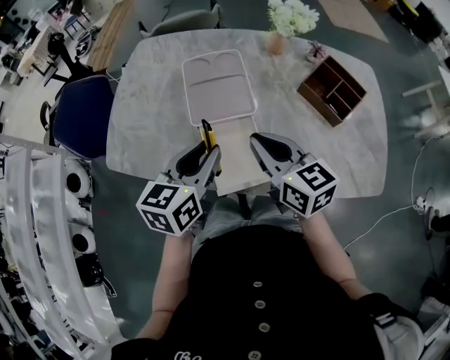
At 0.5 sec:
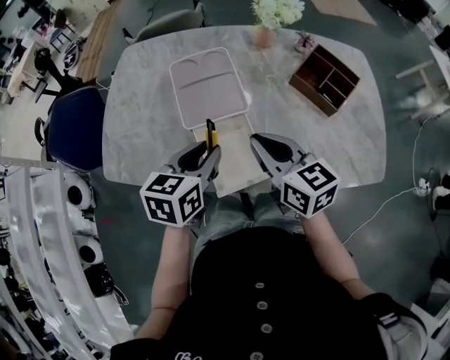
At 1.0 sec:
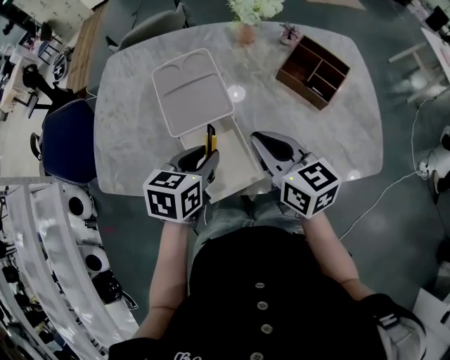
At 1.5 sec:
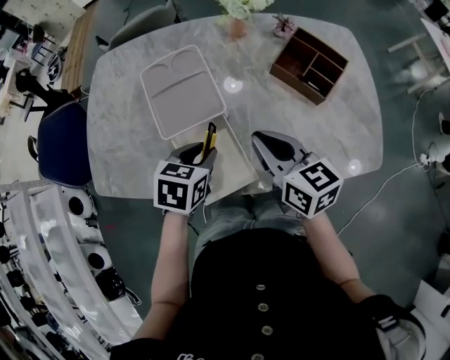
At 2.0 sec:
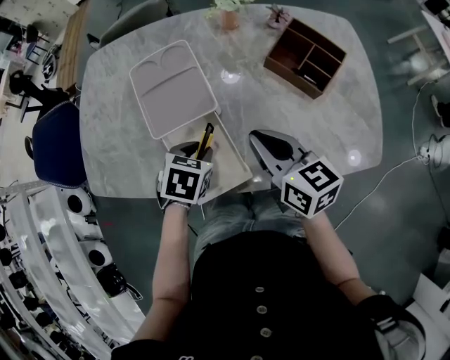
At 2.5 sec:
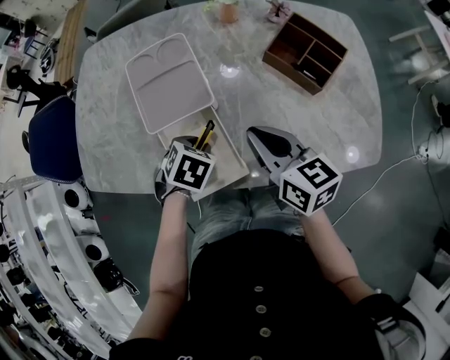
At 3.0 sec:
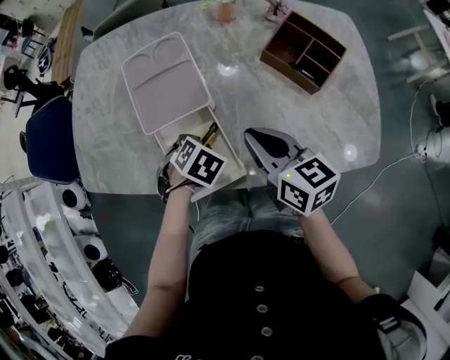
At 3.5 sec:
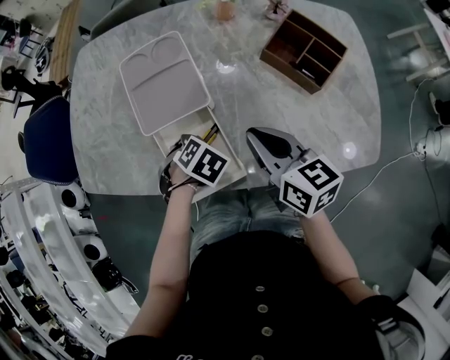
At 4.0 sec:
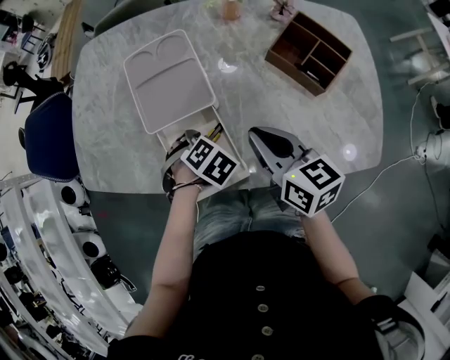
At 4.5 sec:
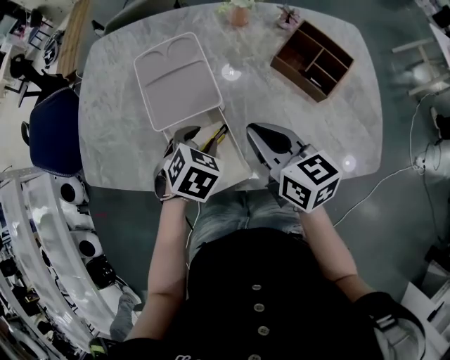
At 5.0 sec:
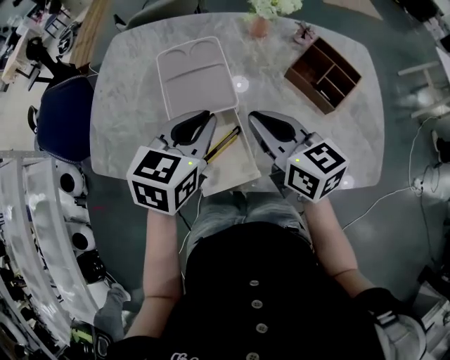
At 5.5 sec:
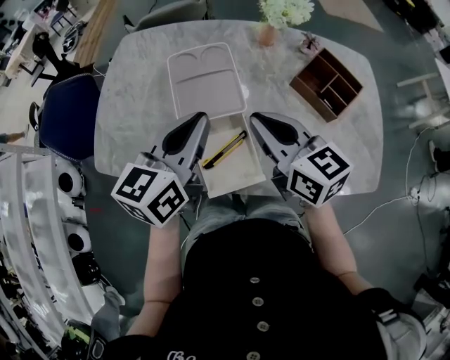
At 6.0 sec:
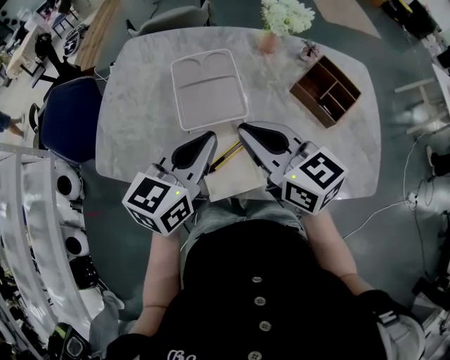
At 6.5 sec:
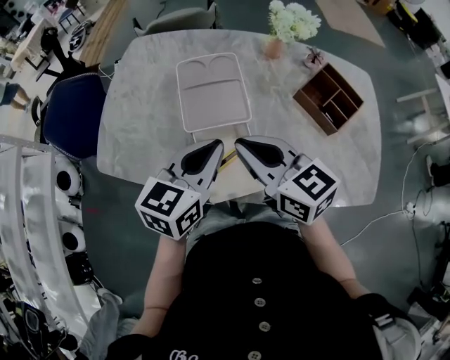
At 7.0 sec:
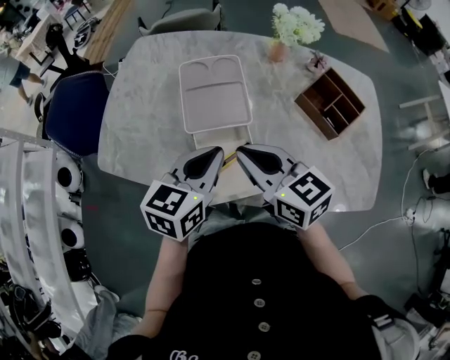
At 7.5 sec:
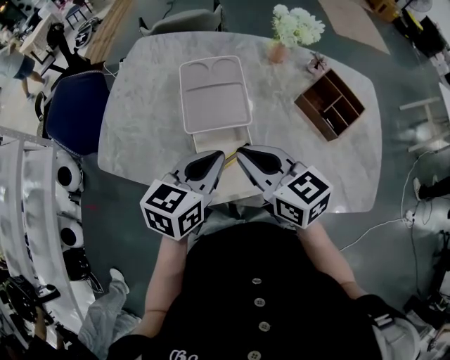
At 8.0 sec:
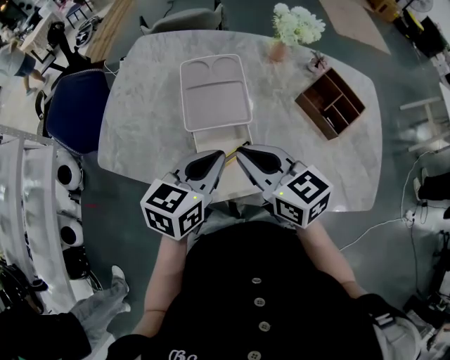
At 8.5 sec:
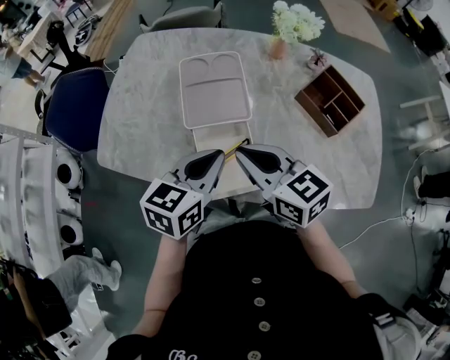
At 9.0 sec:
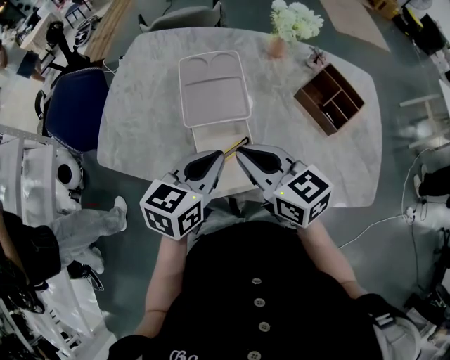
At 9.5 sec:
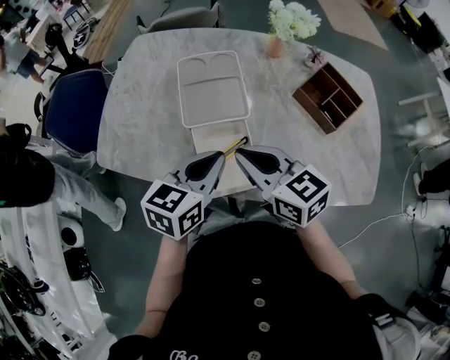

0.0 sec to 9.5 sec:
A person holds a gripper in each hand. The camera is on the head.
0.0 sec to 2.0 sec: The right gripper shifts approximately 10 cm to the right. Meanwhile the left gripper travels downward and to the right by about 15 cm, and angles its fingers downward, by roughly 40 degrees.
2.0 sec to 4.0 sec: The left gripper heads downward, covering some 5 cm, rotates some 30 degrees, and opens up.
4.0 sec to 5.5 sec: The left gripper moves upward, about 30 cm, angles its fingers upward, by approximately 70 degrees, and closes. Meanwhile the right gripper goes roughly 10 cm upward.
5.5 sec to 7.5 sec: The left gripper moves downward, some 5 cm. The right gripper ends up roughly 5 cm from where it was.
7.5 sec to 9.5 sec: The grippers make only small movements.

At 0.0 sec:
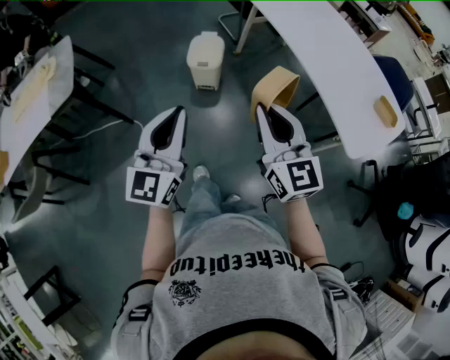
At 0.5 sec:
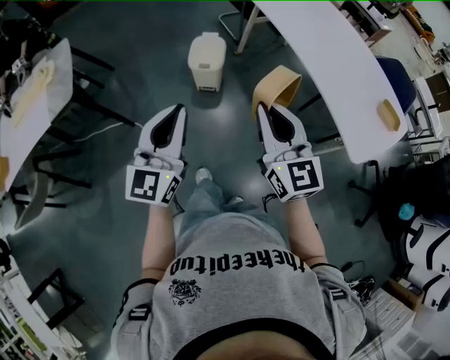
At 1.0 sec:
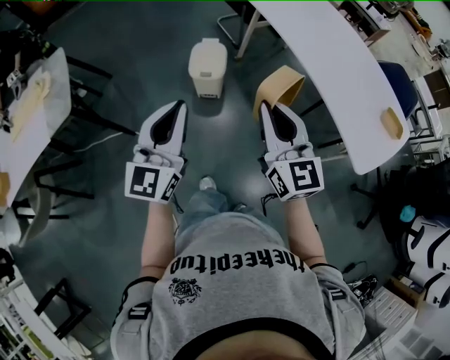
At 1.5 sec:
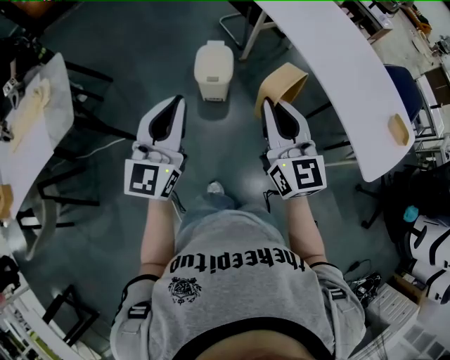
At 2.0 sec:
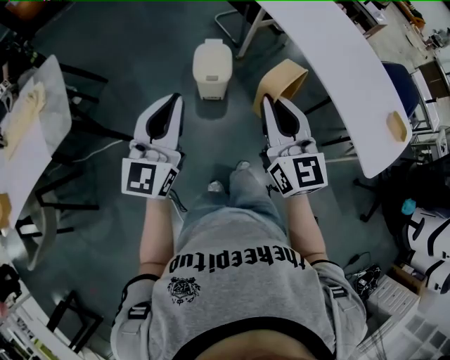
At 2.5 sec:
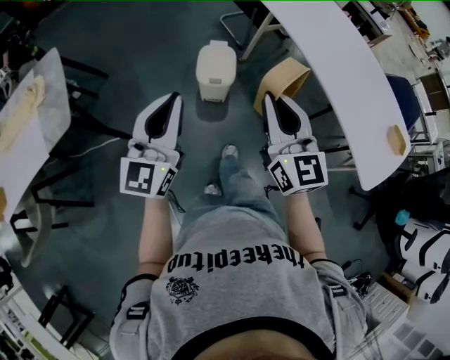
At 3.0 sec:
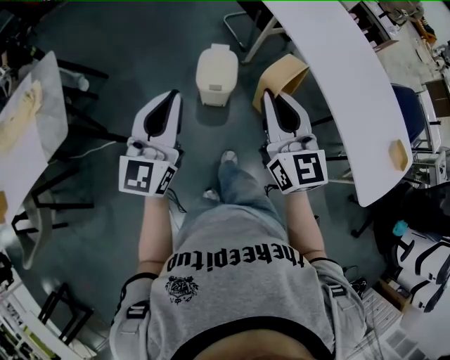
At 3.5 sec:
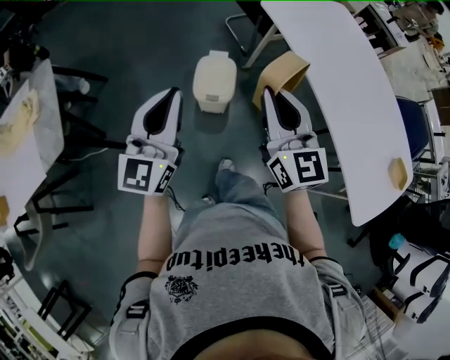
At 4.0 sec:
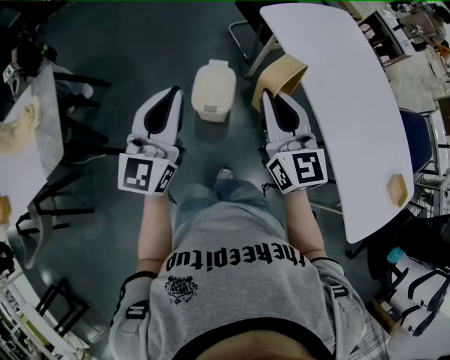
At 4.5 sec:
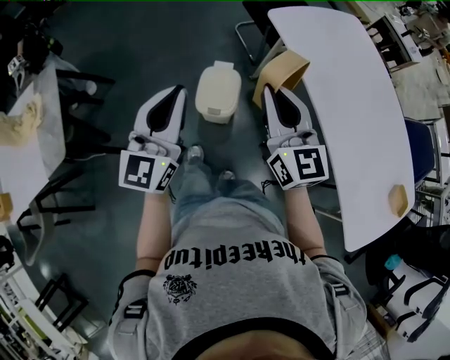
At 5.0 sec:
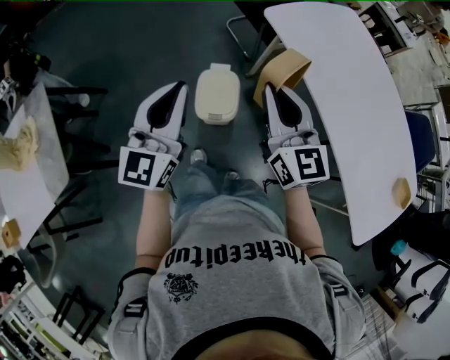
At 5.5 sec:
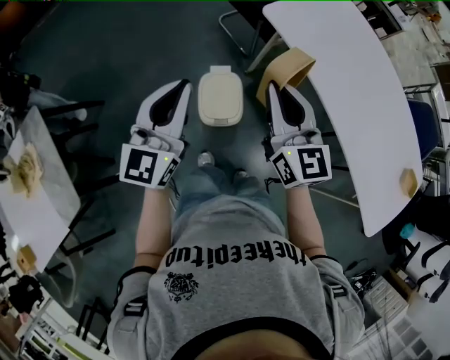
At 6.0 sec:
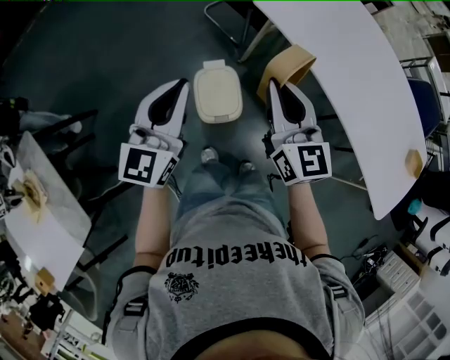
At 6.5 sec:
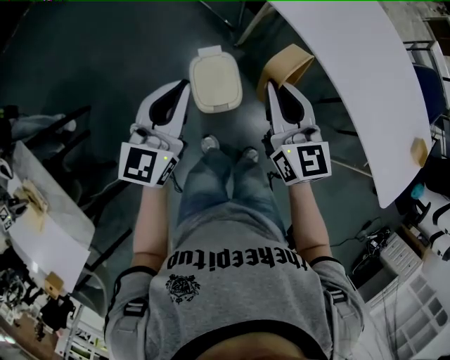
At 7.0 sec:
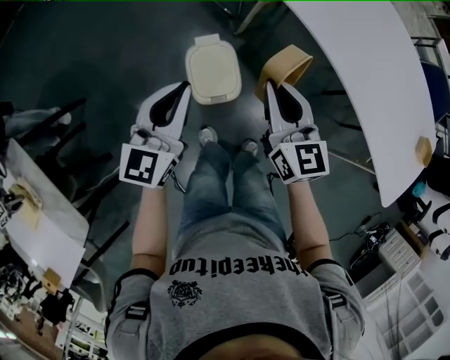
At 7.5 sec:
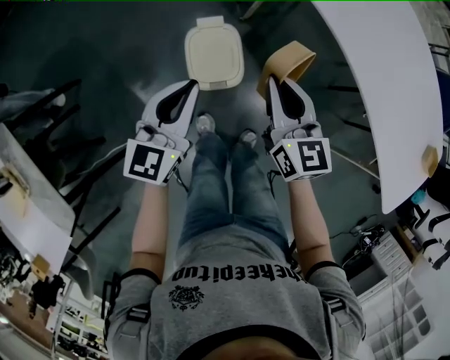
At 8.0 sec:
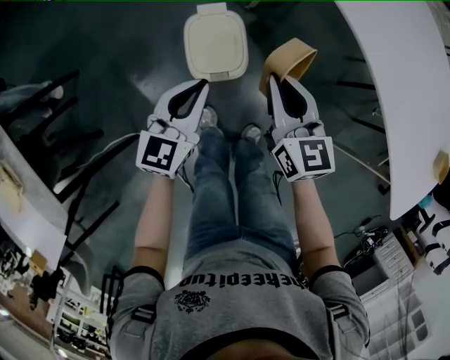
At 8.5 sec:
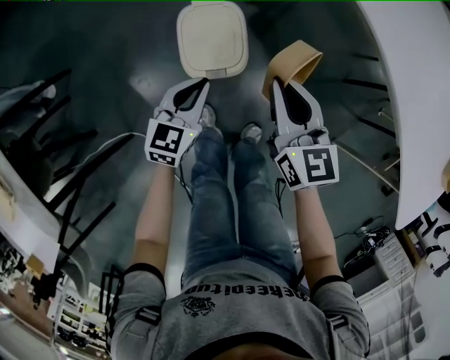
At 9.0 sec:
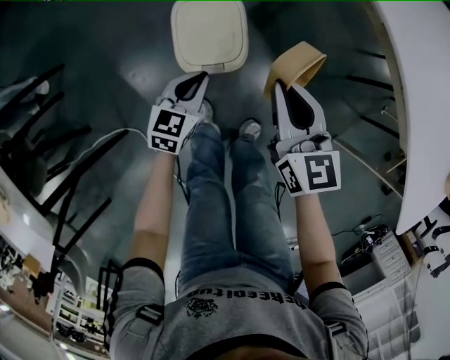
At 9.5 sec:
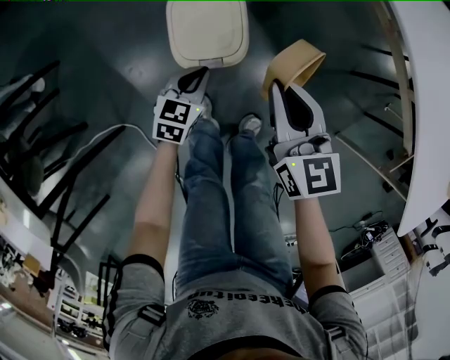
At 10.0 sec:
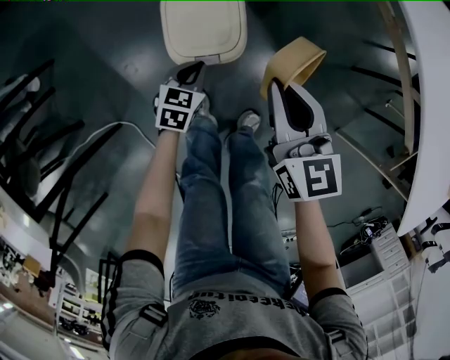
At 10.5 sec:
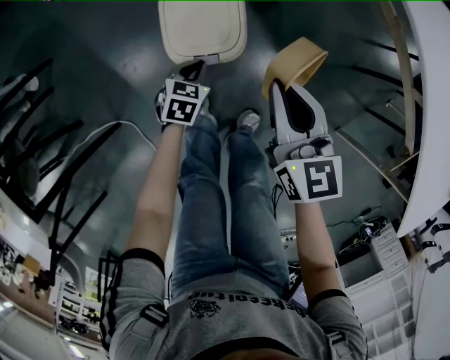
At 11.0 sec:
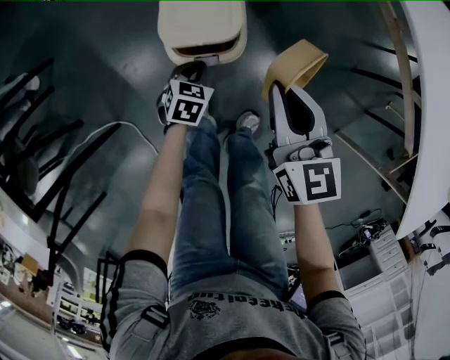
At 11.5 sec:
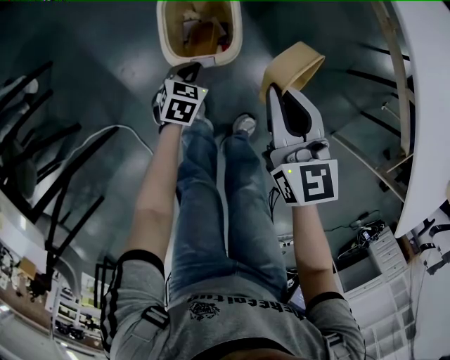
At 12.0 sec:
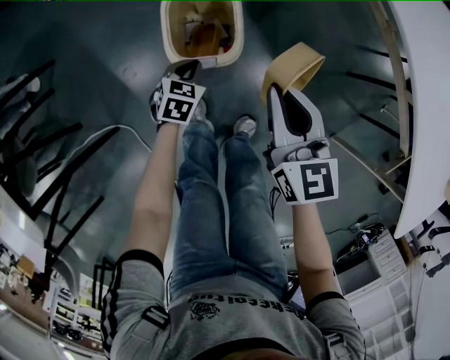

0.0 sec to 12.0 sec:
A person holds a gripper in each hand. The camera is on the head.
0.0 sec to 2.0 sec: Both grippers move forward and to the left, about 20 cm.
2.0 sec to 4.0 sec: Both grippers move forward, roughly 20 cm.
4.0 sec to 6.0 sec: The right gripper heads forward and to the left, covering about 15 cm; the left gripper heads forward, covering roughly 20 cm, and swivels about 20 degrees.
6.0 sec to 8.0 sec: The two grippers go about 20 cm downward.
8.0 sec to 10.0 sec: The right gripper goes roughly 10 cm downward, while the left gripper heads downward, covering about 30 cm, and points its fingers about 30 degrees further downward.
10.0 sec to 12.0 sec: The grippers stay close to where they were, moving slightly.

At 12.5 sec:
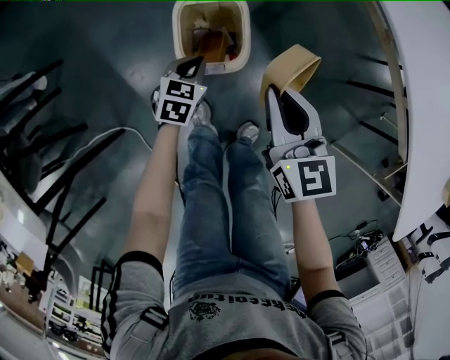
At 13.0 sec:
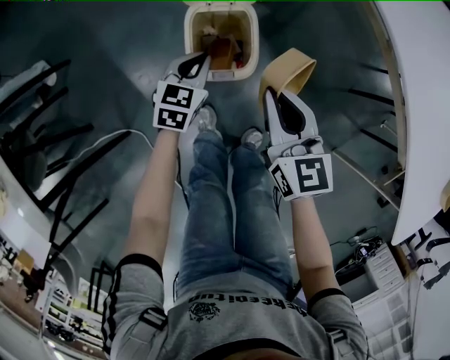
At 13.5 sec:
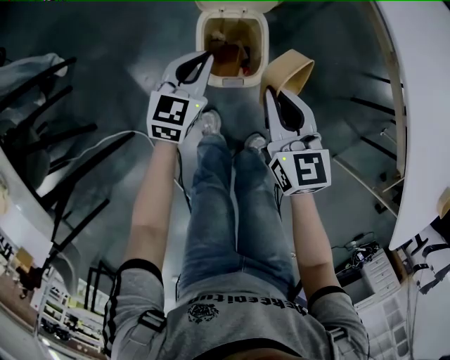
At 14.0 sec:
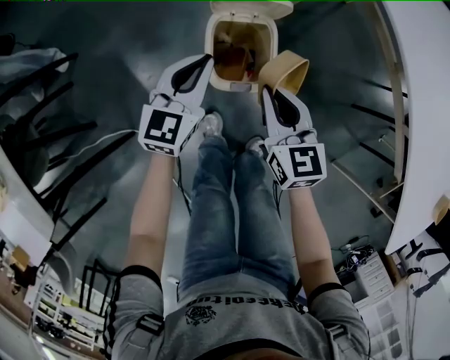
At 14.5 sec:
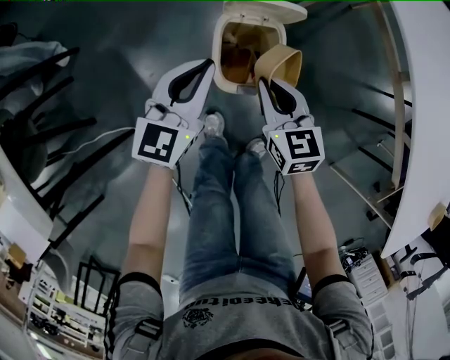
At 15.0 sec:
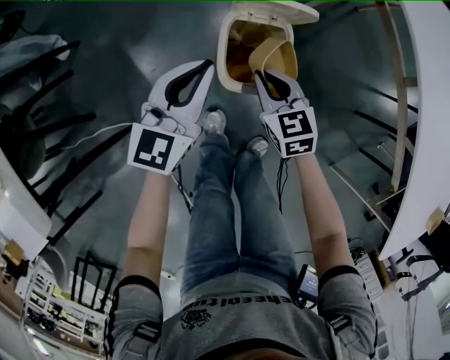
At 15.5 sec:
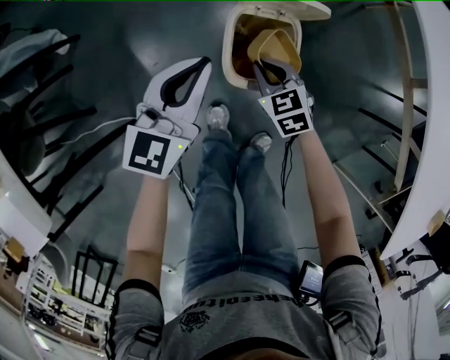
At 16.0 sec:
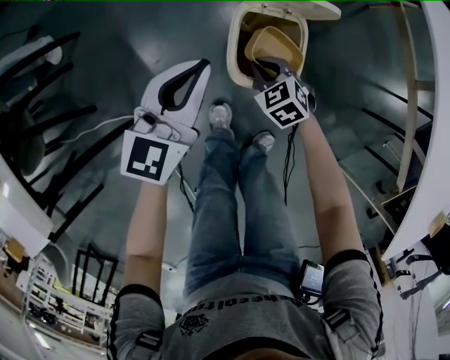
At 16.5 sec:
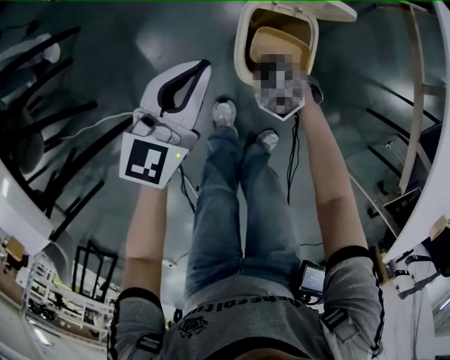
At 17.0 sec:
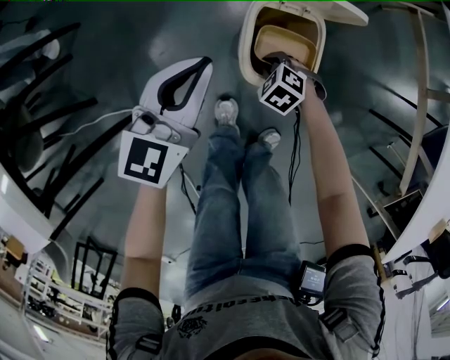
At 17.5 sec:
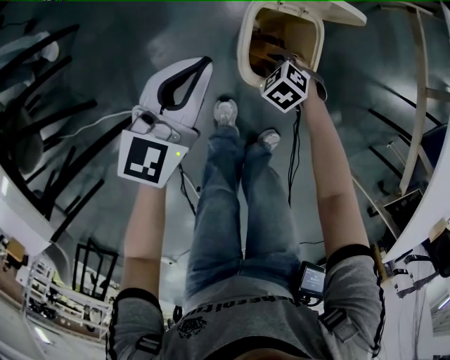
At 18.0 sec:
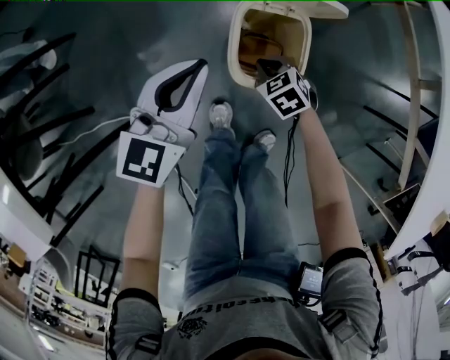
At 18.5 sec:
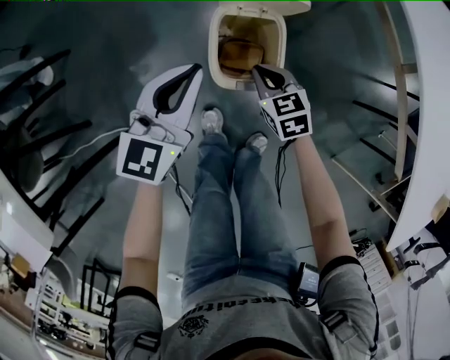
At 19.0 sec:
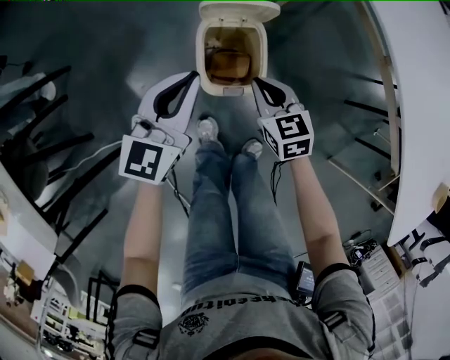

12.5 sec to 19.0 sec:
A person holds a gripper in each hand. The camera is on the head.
12.5 sec to 14.5 sec: The right gripper goes about 15 cm to the left, forward and downward. Meanwhile the left gripper shifts approximately 20 cm upward, and points its fingers approximately 40 degrees further upward.
14.5 sec to 17.0 sec: The left gripper goes about 5 cm to the left. Meanwhile the right gripper shifts about 25 cm downward, and angles its fingers downward, by some 40 degrees.
17.0 sec to 19.0 sec: The right gripper shifts approximately 20 cm upward and to the right, and angles its fingers upward, by approximately 30 degrees. The left gripper shifts some 10 cm to the right and upward.
